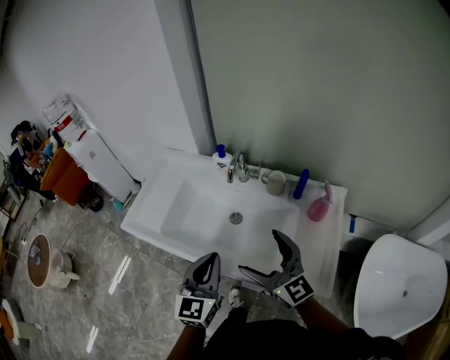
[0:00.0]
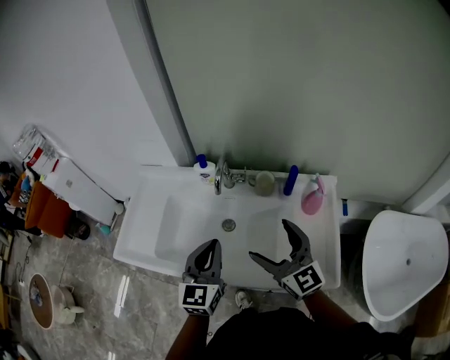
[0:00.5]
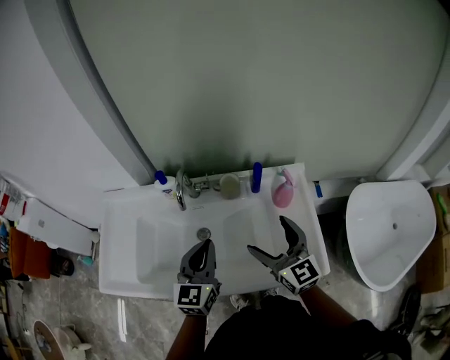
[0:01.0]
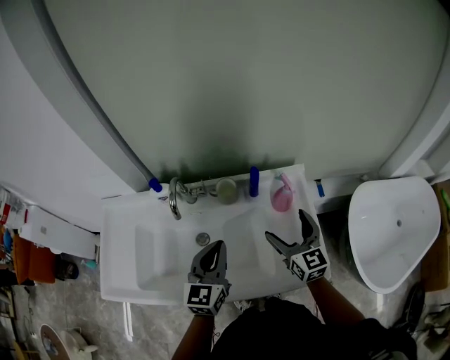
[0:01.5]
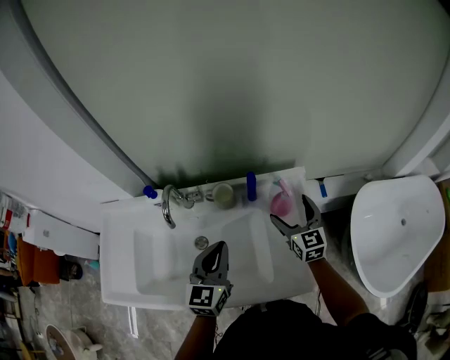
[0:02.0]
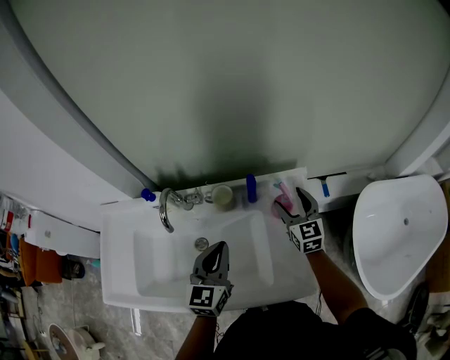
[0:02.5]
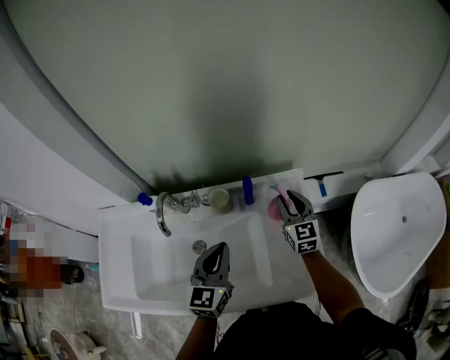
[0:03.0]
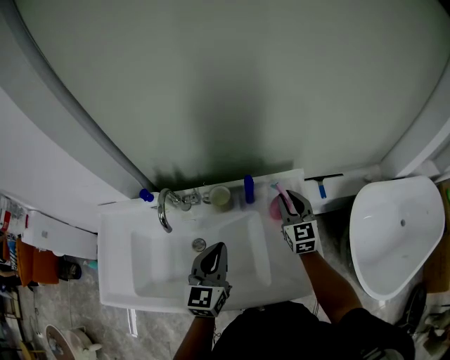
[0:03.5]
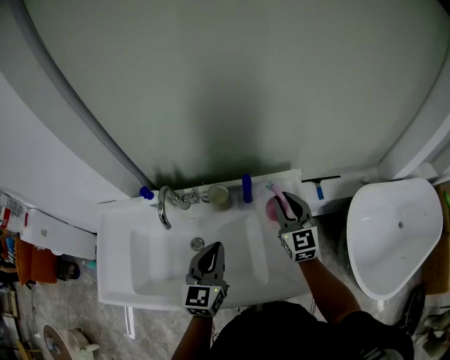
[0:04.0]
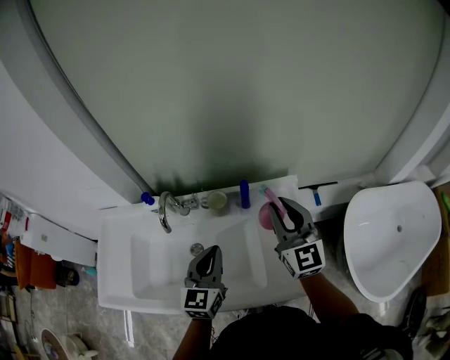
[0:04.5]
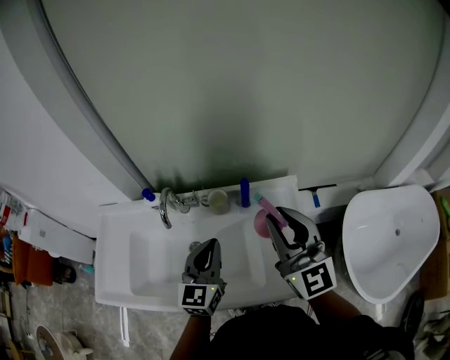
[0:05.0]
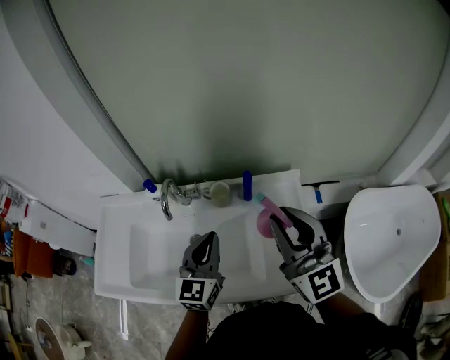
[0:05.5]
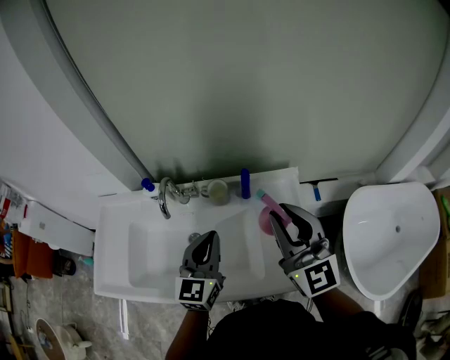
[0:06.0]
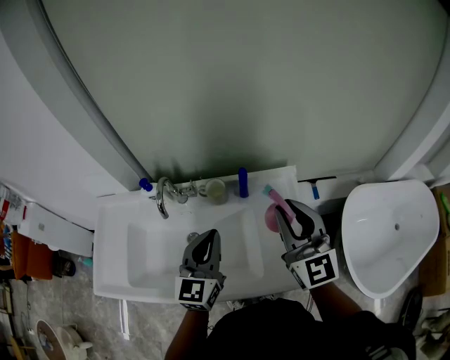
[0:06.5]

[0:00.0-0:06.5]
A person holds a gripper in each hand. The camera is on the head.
0:00.0 to 0:02.0: The right gripper shifts by roughly 35 cm, and turns by approximately 50 degrees. The left gripper changes place by roughly 20 cm, and swivels roughly 30 degrees.
0:02.0 to 0:04.5: The right gripper moves upward, roughly 15 cm, and closes its fingers.
0:04.5 to 0:06.5: The right gripper goes approximately 5 cm backward.

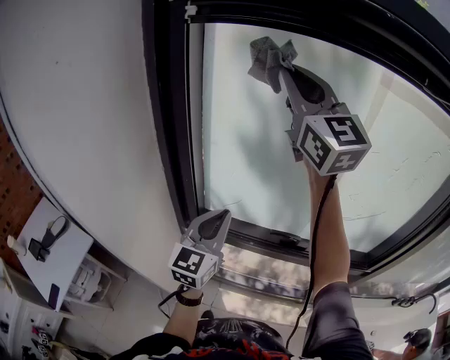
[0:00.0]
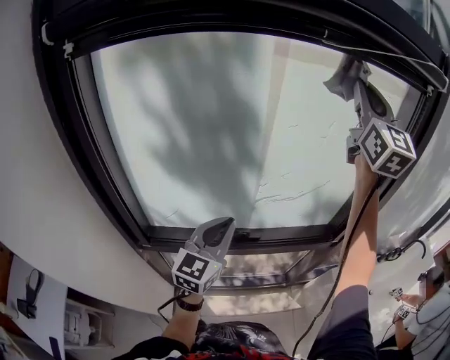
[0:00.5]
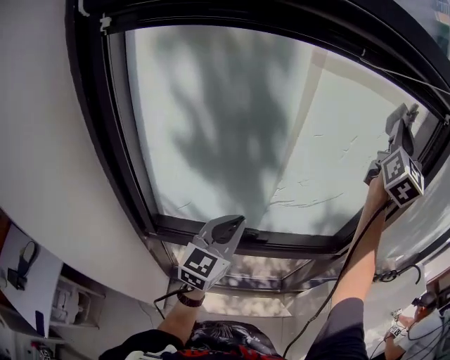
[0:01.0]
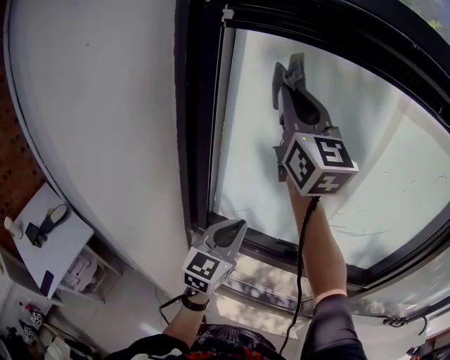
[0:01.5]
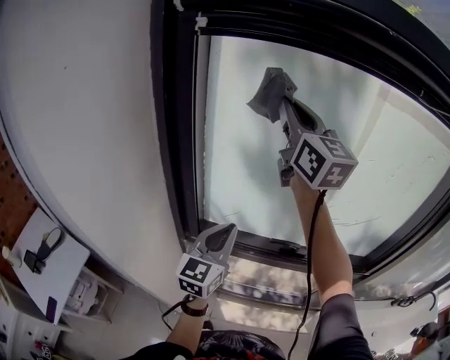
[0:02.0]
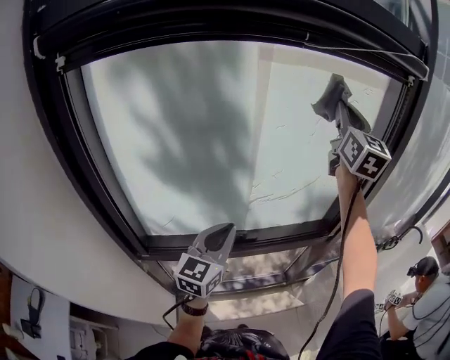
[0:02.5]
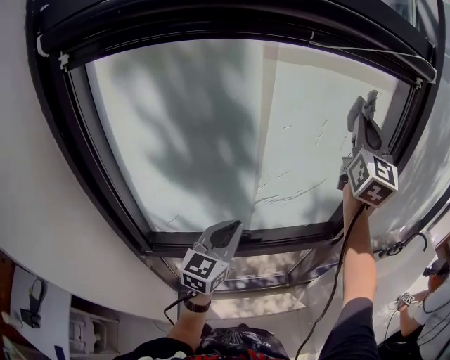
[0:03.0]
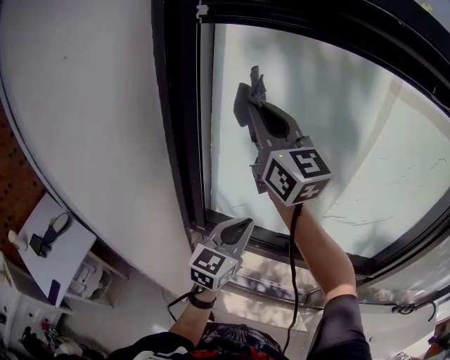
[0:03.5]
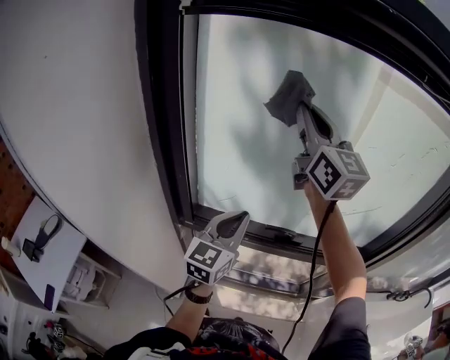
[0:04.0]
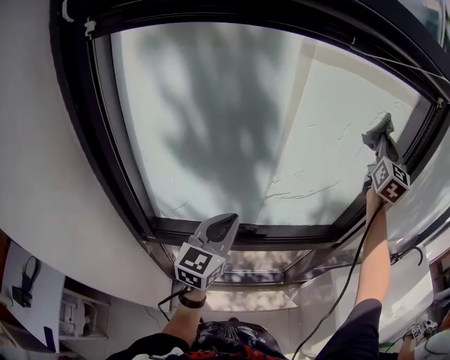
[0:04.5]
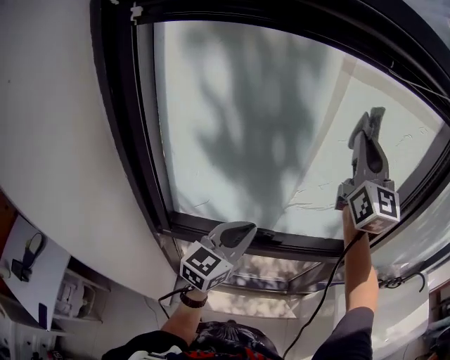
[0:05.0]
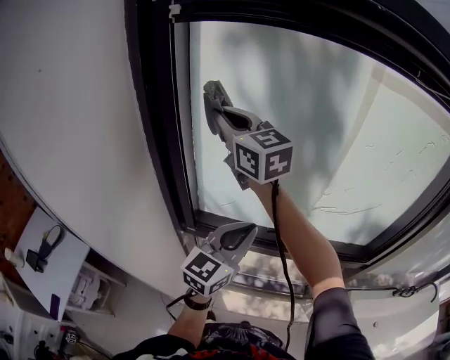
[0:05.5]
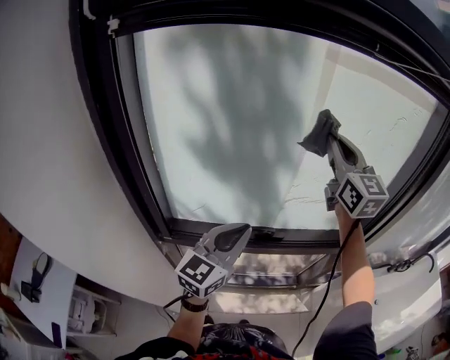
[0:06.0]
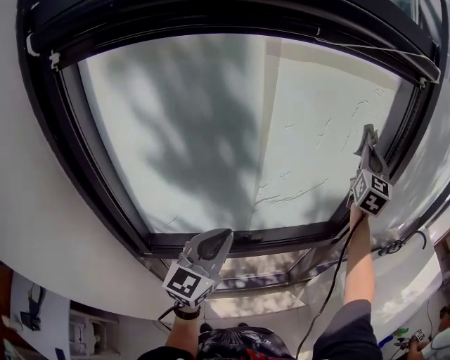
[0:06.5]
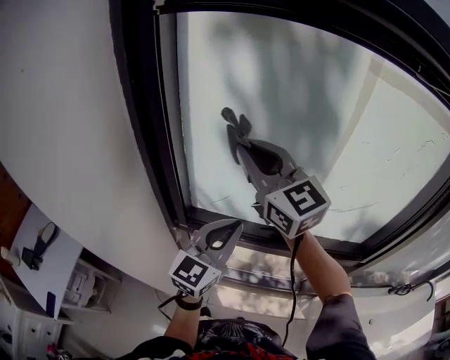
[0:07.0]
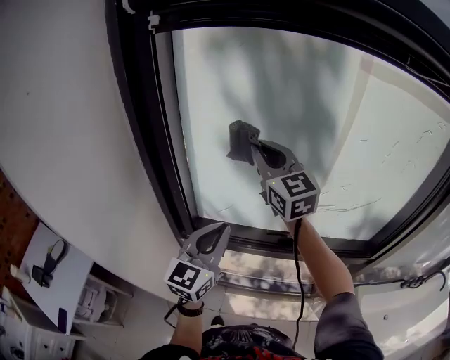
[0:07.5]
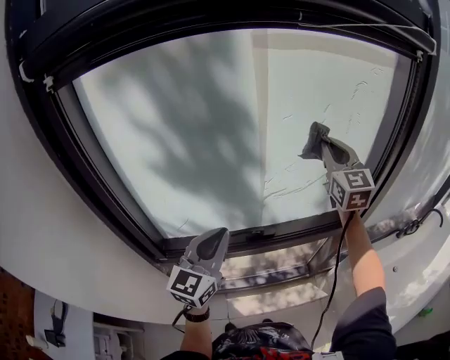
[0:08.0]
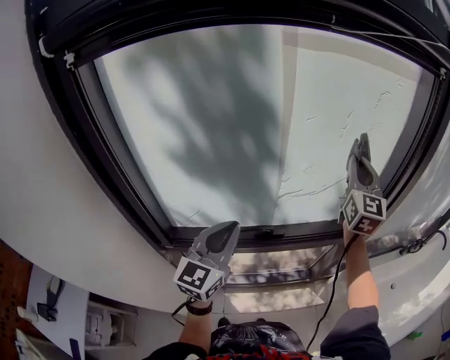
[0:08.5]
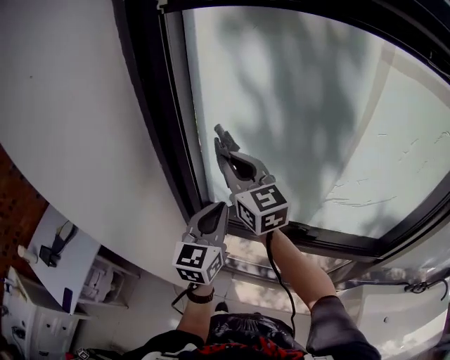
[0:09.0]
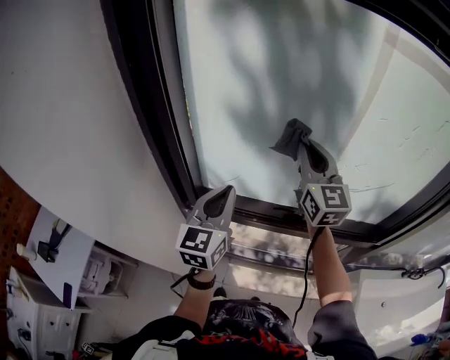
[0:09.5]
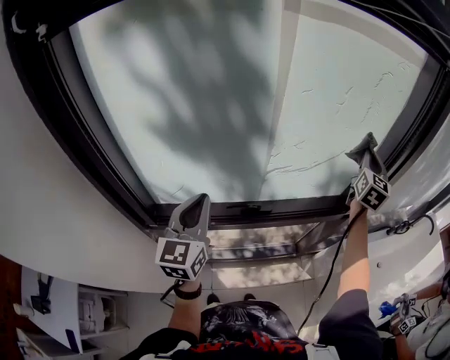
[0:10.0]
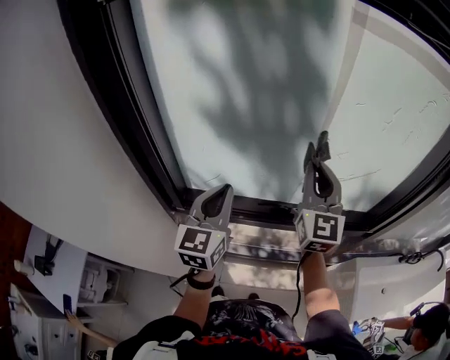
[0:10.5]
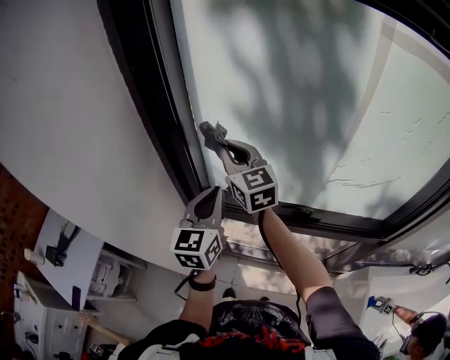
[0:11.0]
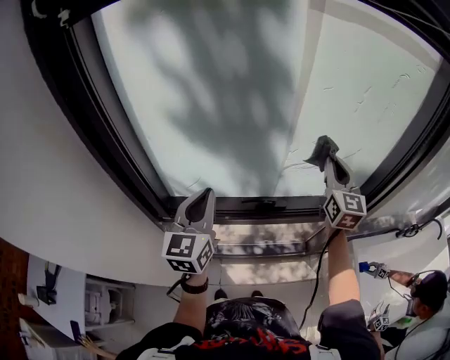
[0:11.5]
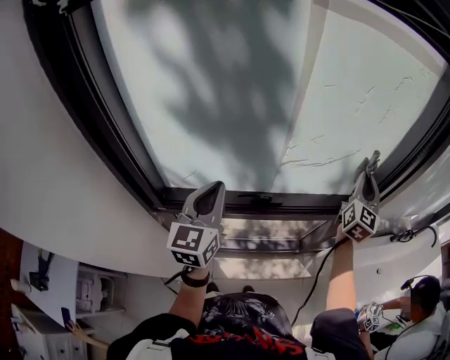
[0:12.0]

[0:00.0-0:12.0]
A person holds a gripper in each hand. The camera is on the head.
0:00.0 to 0:02.0: The right gripper travels downward by about 5 cm.
0:04.0 to 0:06.0: The left gripper shifts by approximately 10 cm. Meanwhile the right gripper changes its angle by approximately 20 degrees.
0:08.0 to 0:10.0: The right gripper turns by approximately 30 degrees.

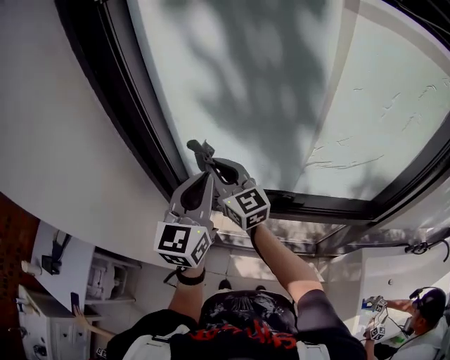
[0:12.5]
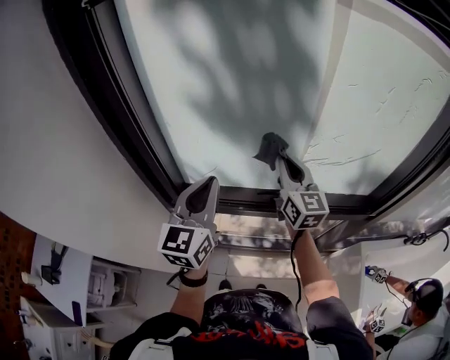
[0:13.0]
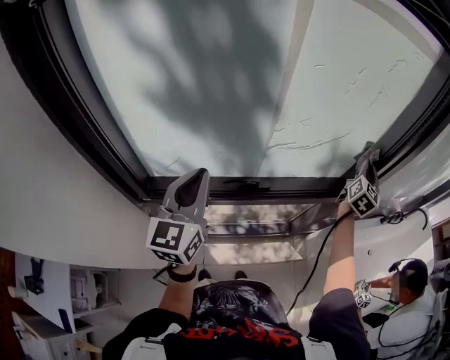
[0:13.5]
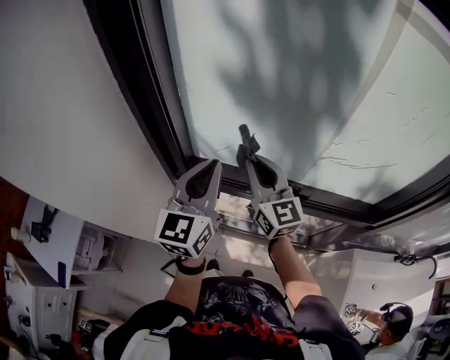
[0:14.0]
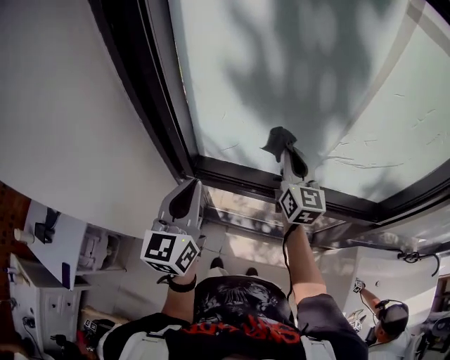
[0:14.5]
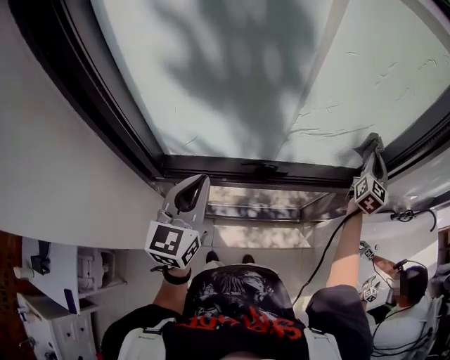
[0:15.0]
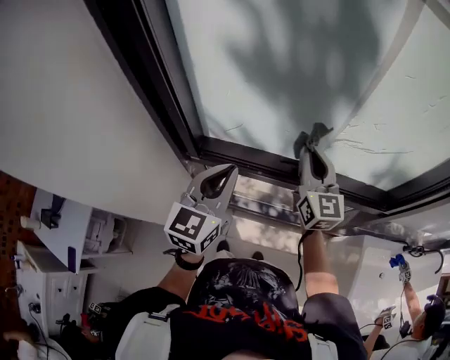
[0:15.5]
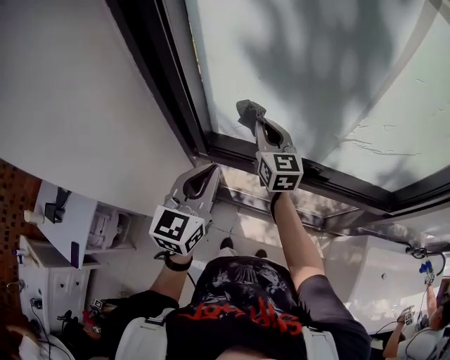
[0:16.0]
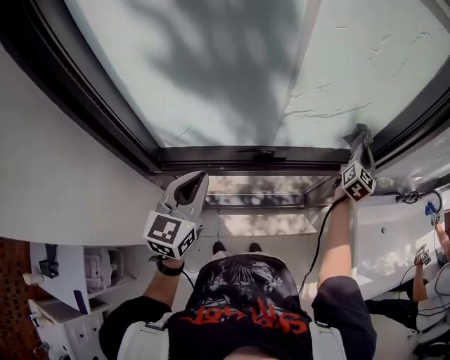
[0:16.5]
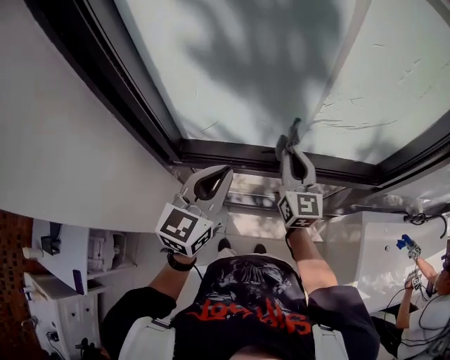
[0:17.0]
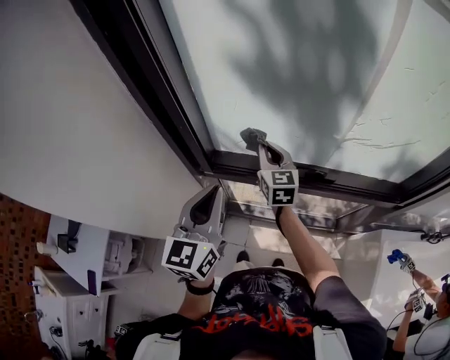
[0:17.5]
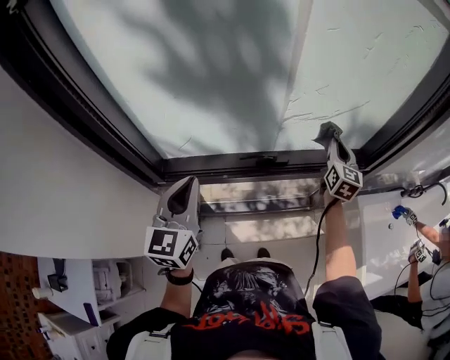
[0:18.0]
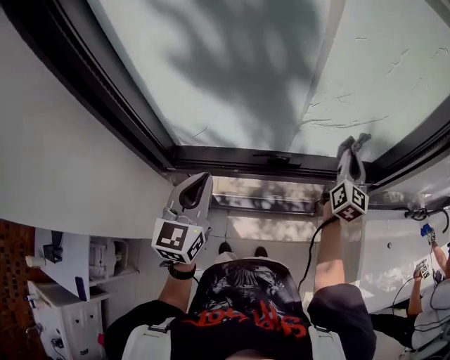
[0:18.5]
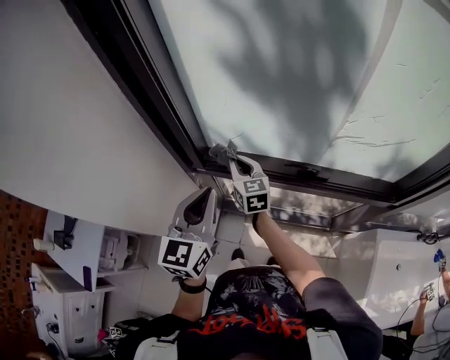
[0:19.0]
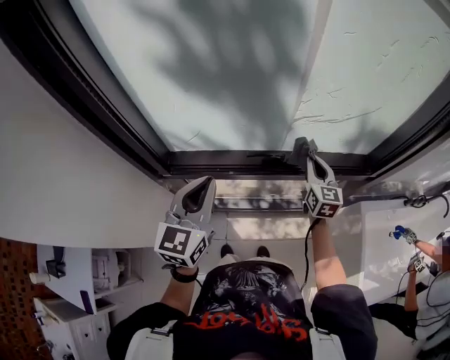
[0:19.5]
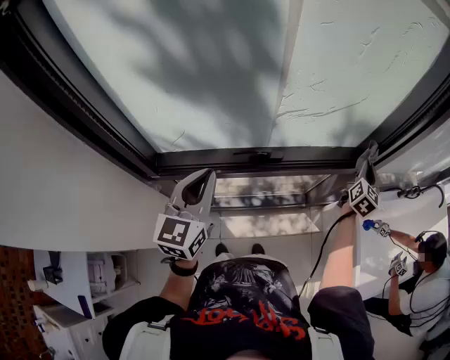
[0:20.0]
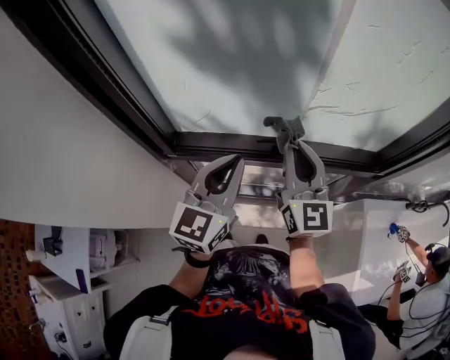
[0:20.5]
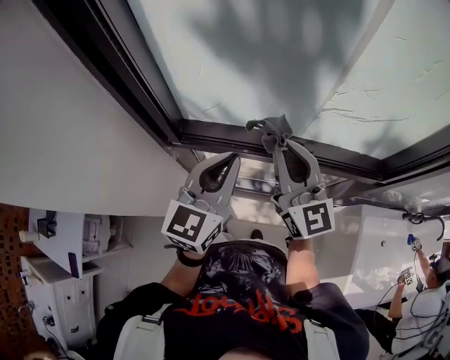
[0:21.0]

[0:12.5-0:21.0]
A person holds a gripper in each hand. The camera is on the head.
0:12.5 to 0:14.5: The left gripper changes place by approximately 10 cm, while the right gripper rotates roughly 30 degrees.
0:14.5 to 0:16.5: The left gripper shifts by about 15 cm, and changes its angle by roughly 30 degrees. Meanwhile the right gripper changes place by about 40 cm, and turns by roughly 50 degrees.
0:16.5 to 0:19.0: The left gripper changes place by approximately 10 cm, and swivels about 20 degrees. The right gripper changes place by some 60 cm, and rotates roughly 70 degrees.
0:19.0 to 0:21.0: The right gripper swivels approximately 30 degrees, while the left gripper changes place by approximately 10 cm.
